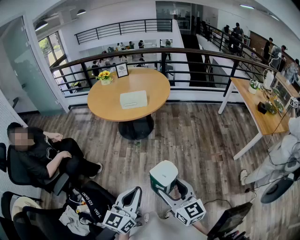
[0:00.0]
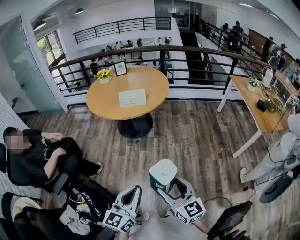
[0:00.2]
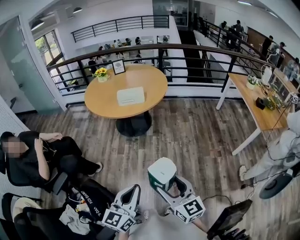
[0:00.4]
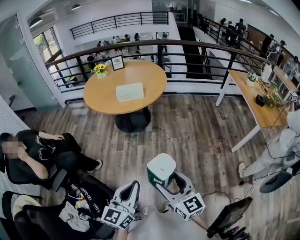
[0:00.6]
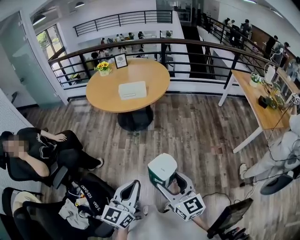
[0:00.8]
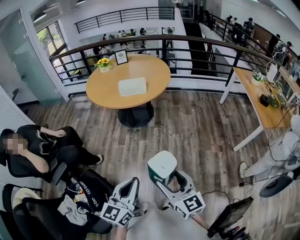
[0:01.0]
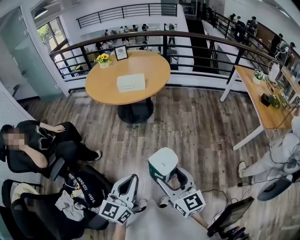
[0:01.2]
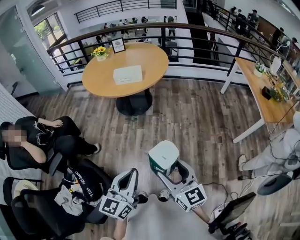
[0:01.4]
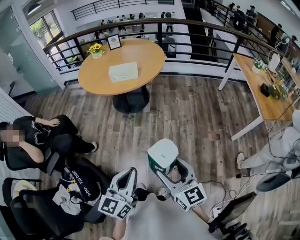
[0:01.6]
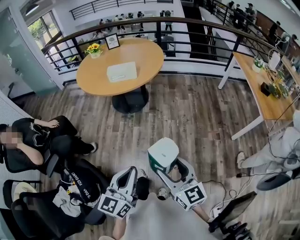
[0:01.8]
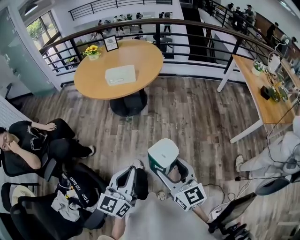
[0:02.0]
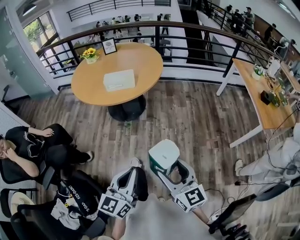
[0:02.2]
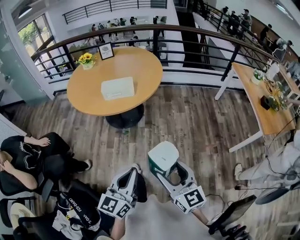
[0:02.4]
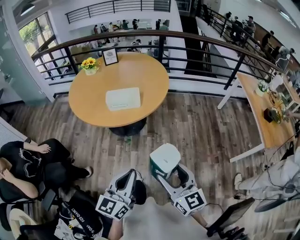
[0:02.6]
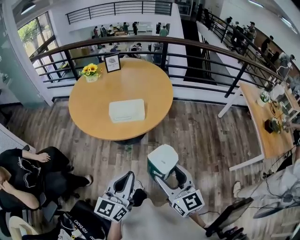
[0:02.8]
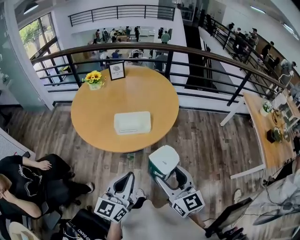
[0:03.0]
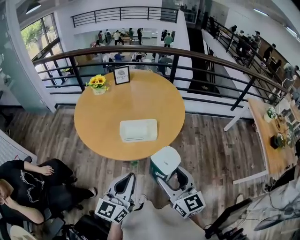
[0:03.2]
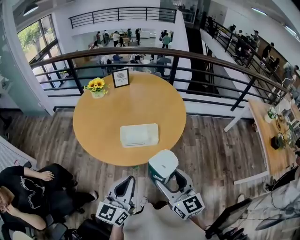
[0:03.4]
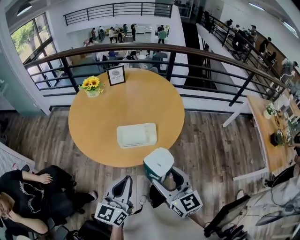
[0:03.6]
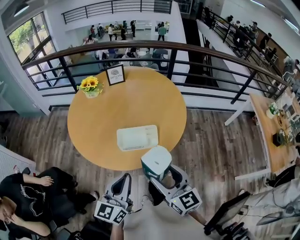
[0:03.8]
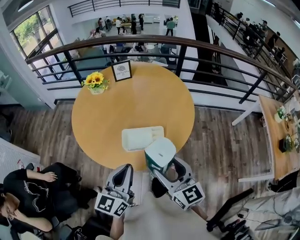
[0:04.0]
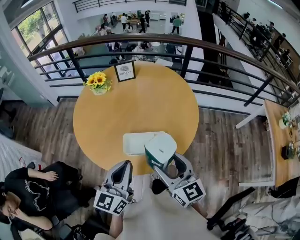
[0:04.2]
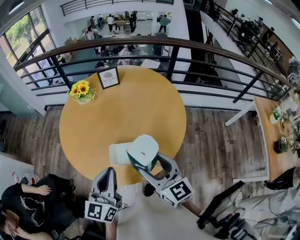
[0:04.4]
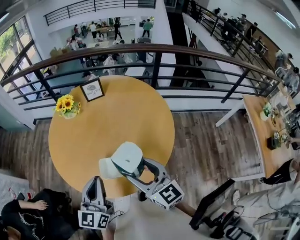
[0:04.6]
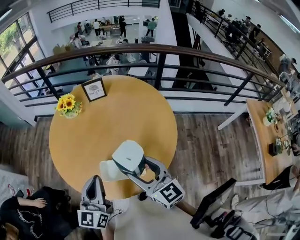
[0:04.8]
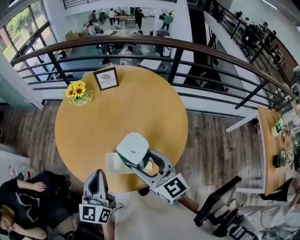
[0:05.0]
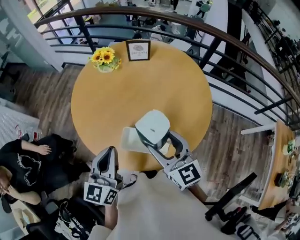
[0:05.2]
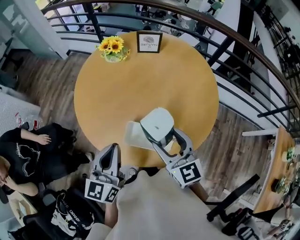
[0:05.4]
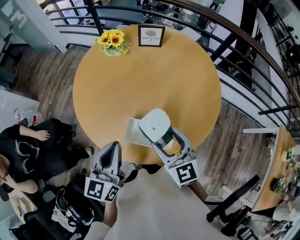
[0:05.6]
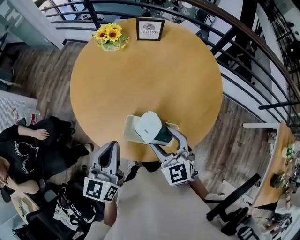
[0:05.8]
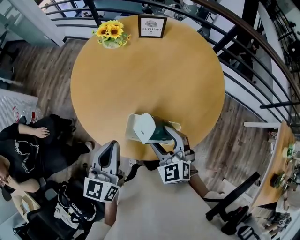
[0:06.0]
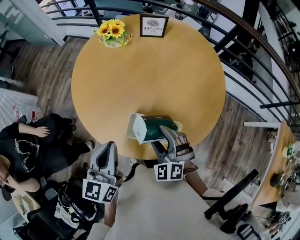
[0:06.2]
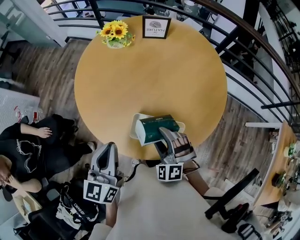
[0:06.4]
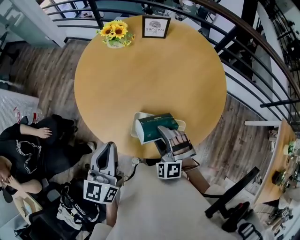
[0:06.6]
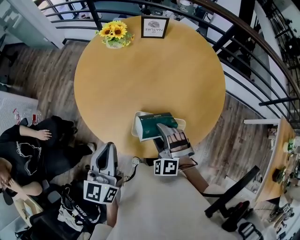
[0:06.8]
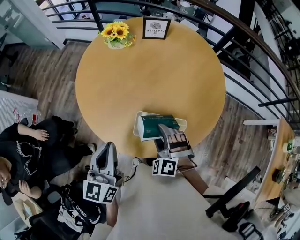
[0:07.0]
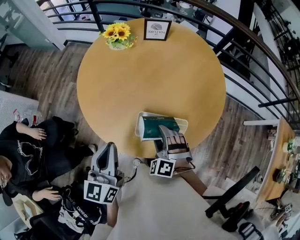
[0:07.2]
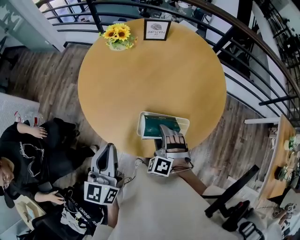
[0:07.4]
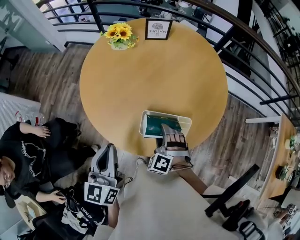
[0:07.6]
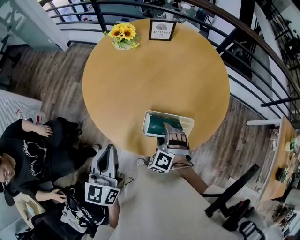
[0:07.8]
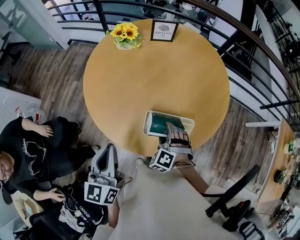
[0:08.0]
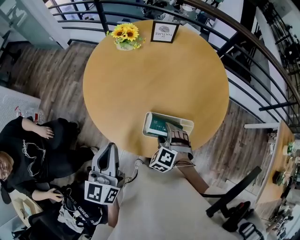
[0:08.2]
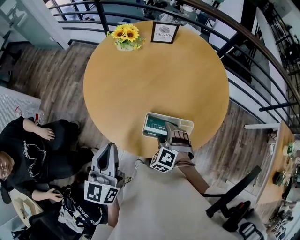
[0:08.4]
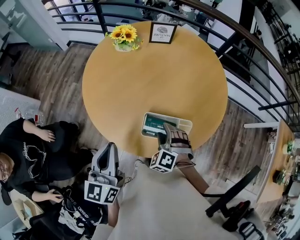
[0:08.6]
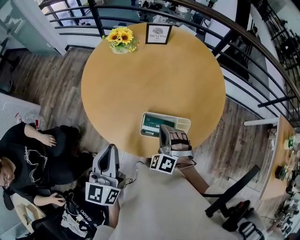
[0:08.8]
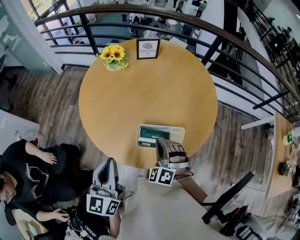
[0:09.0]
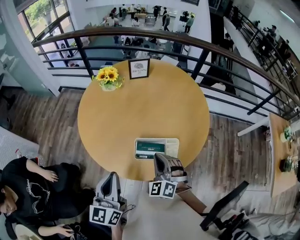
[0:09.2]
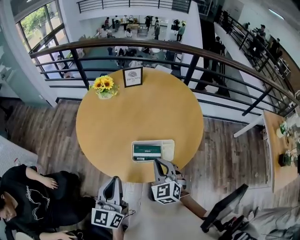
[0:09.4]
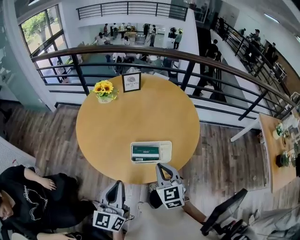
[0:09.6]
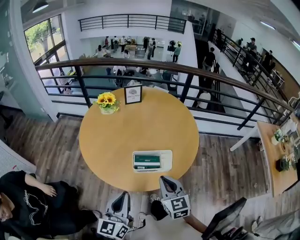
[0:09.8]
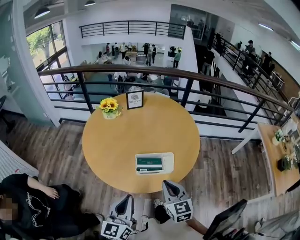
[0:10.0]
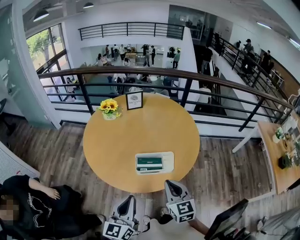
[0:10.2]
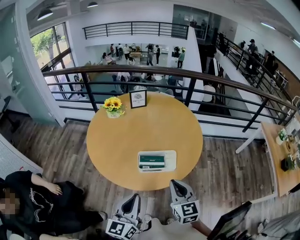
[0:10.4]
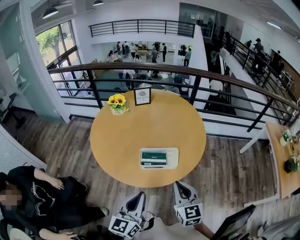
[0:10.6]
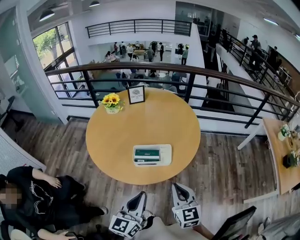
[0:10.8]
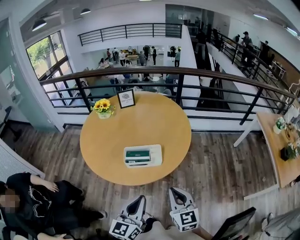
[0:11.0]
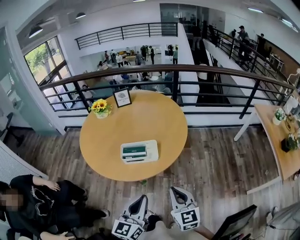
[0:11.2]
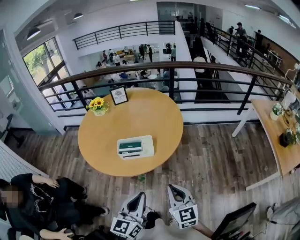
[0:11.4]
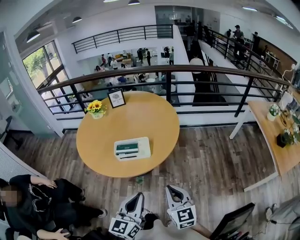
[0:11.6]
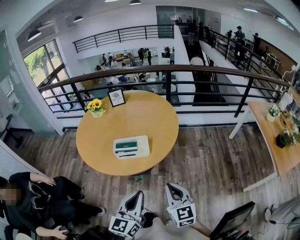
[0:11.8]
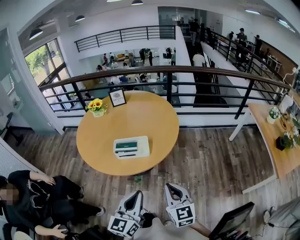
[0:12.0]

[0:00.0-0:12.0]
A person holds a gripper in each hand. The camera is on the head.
0.0 to 1.6 s: The grippers both shift to the right by some 5 cm.
1.6 to 3.0 s: Both grippers travel together forward, approximately 35 cm.
3.0 to 4.4 s: The grippers both shift forward by some 25 cm.
4.4 to 6.0 s: The right gripper moves downward and forward, approximately 15 cm, and swivels approximately 50 degrees, while the left gripper moves forward and downward, approximately 10 cm.
6.0 to 7.6 s: The right gripper goes roughly 10 cm downward, and changes its angle by roughly 40 degrees; the left gripper shifts approximately 5 cm to the left.
7.6 to 9.0 s: The right gripper travels upward by roughly 5 cm, and closes up.
9.0 to 10.4 s: The right gripper goes some 20 cm backward, upward and to the right, and rolls clockwise, seen from behind, by approximately 60 degrees; the left gripper travels backward and to the right by roughly 15 cm.
10.4 to 12.0 s: Both grippers move to the right and backward, about 20 cm.

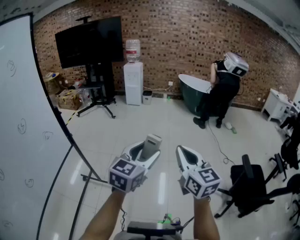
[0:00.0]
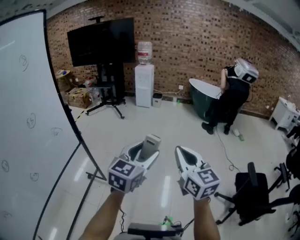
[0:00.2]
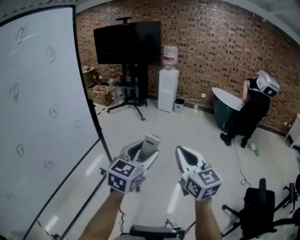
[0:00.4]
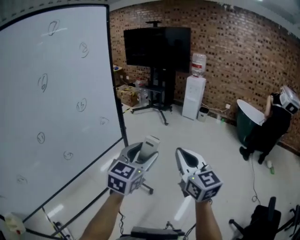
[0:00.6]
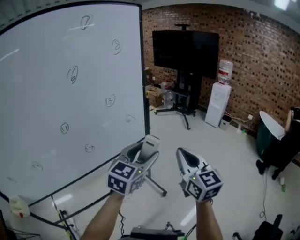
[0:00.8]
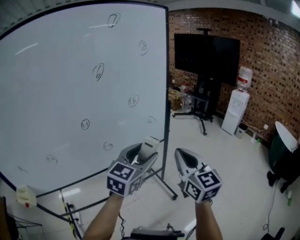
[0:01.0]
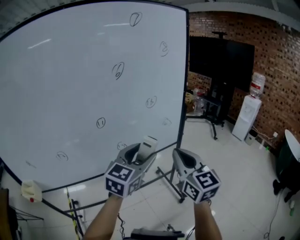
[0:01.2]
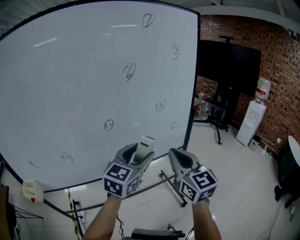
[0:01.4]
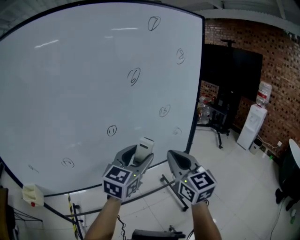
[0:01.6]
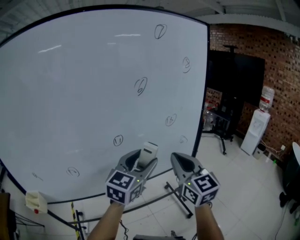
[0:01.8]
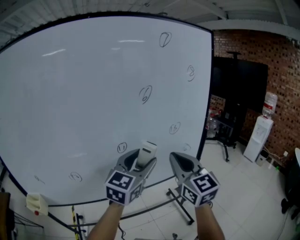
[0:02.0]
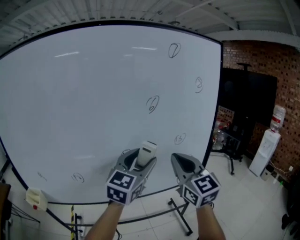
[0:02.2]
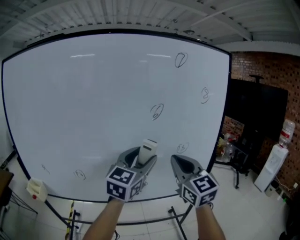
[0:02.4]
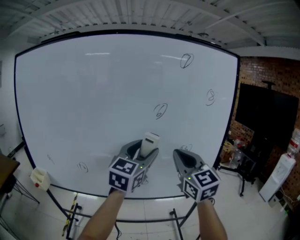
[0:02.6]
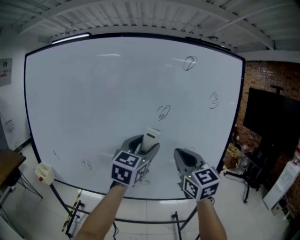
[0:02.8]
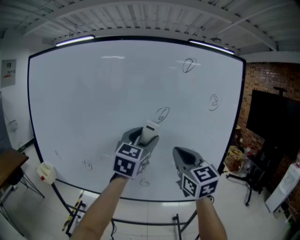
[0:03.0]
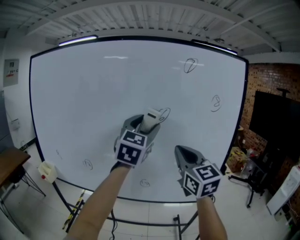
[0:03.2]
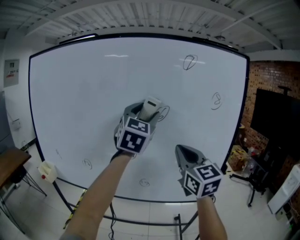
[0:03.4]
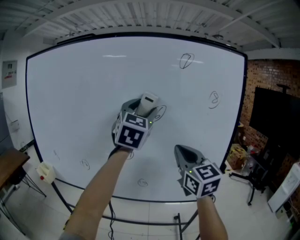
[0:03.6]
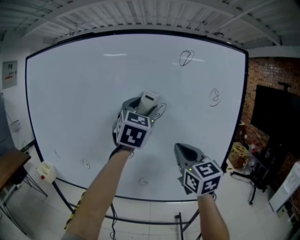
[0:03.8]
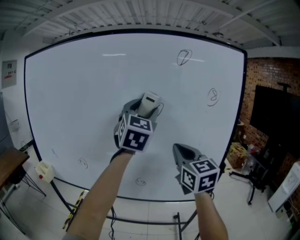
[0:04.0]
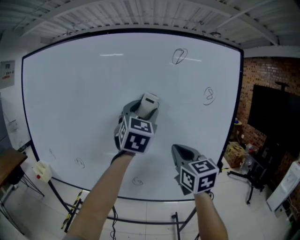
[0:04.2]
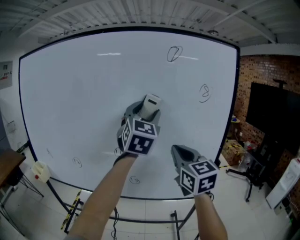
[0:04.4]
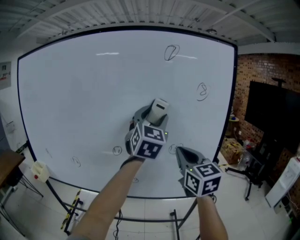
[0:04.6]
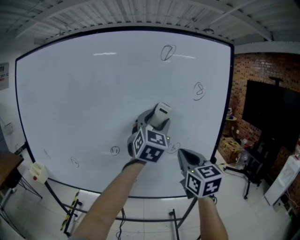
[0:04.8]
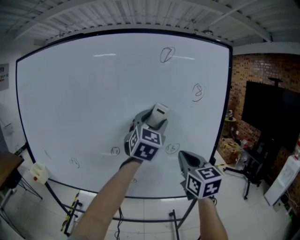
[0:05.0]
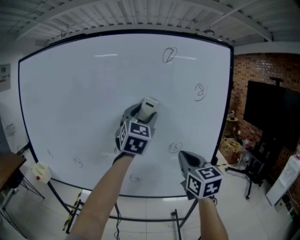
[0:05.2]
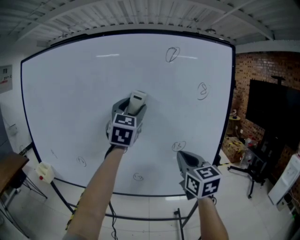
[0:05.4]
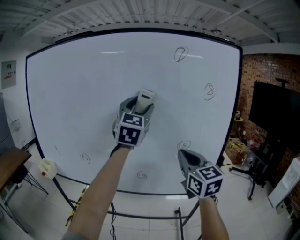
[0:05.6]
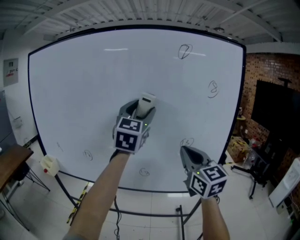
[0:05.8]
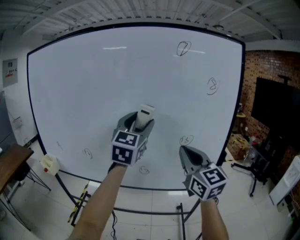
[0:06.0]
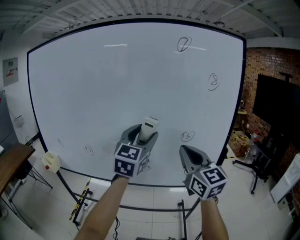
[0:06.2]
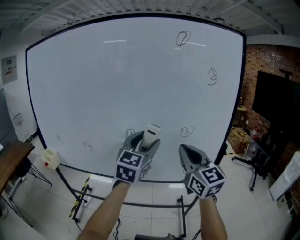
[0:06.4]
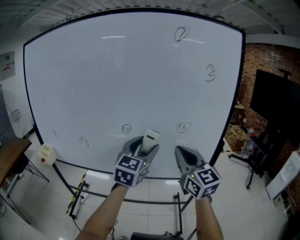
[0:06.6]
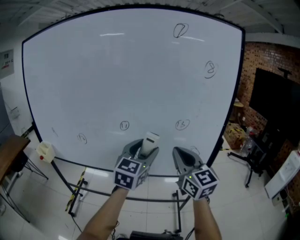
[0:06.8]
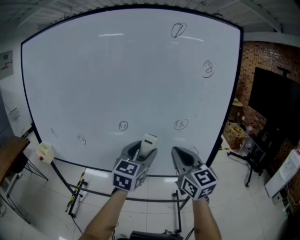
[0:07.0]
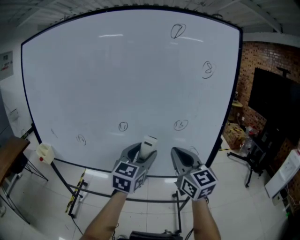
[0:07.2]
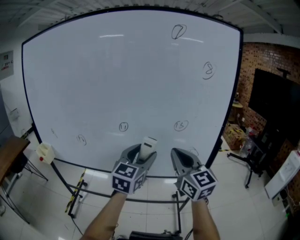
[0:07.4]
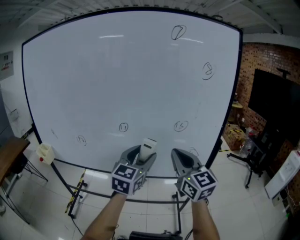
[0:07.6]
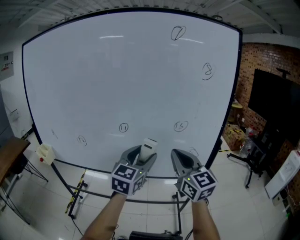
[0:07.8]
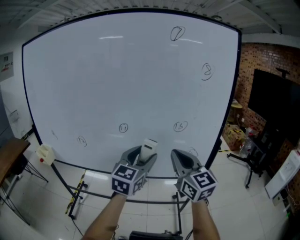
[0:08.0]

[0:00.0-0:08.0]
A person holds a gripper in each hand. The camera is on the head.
0.0 to 1.6 s: Both grippers are carried about 50 cm. The left gripper swivels roughly 60 degrees, while the right gripper rotates approximately 60 degrees.
1.6 to 3.2 s: The left gripper is displaced upward by about 20 cm, and changes its angle by roughly 40 degrees, while the right gripper shifts approximately 10 cm upward, and swivels roughly 30 degrees.
3.2 to 4.8 s: Both grippers travel together to the right, about 10 cm.
4.8 to 6.4 s: The left gripper moves downward, to the left and backward, roughly 15 cm, while the right gripper moves to the left, about 5 cm.
6.4 to 8.0 s: The left gripper shifts about 5 cm downward.

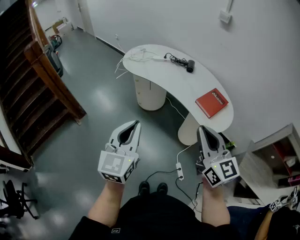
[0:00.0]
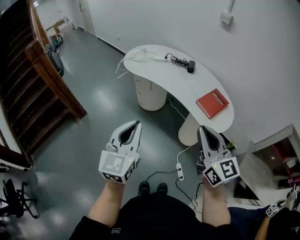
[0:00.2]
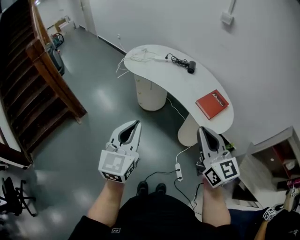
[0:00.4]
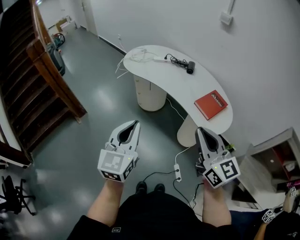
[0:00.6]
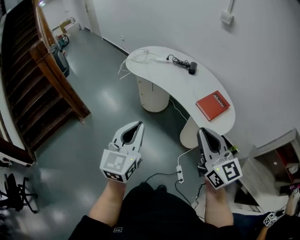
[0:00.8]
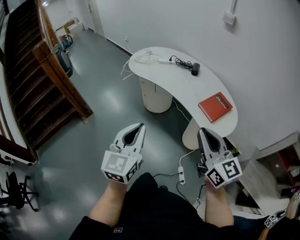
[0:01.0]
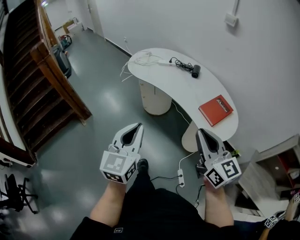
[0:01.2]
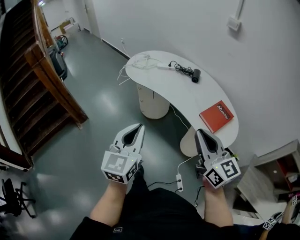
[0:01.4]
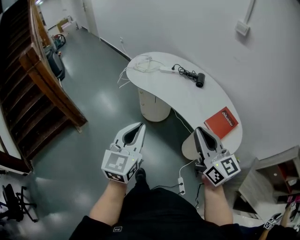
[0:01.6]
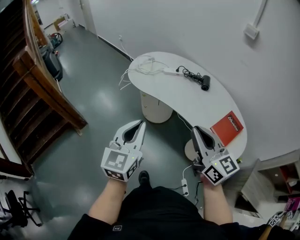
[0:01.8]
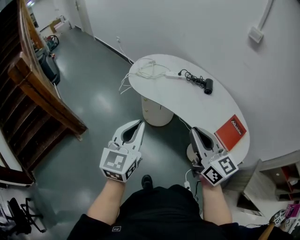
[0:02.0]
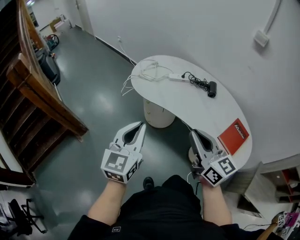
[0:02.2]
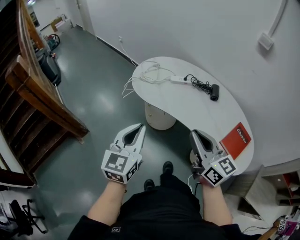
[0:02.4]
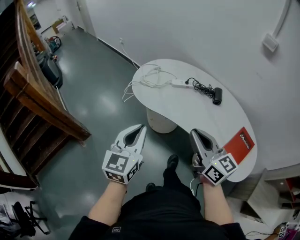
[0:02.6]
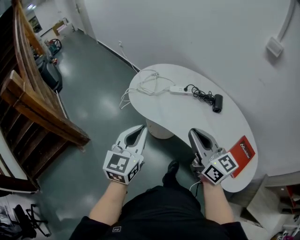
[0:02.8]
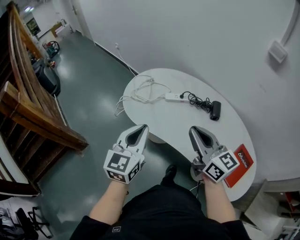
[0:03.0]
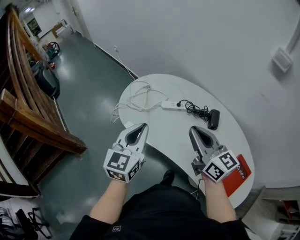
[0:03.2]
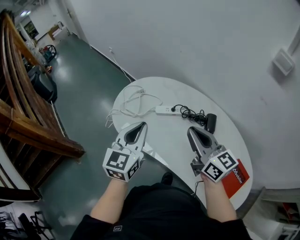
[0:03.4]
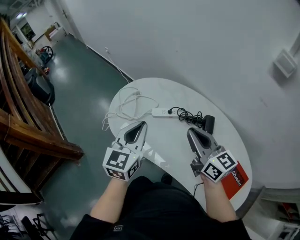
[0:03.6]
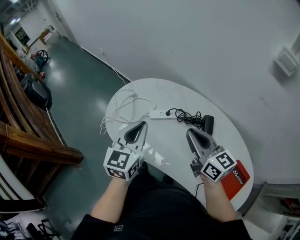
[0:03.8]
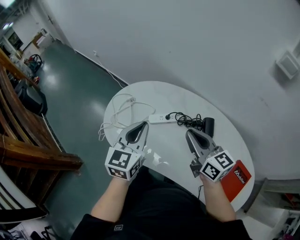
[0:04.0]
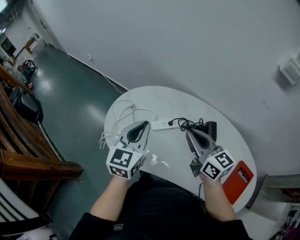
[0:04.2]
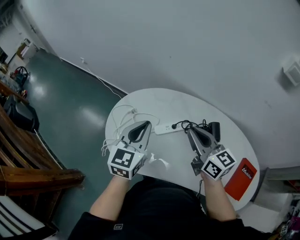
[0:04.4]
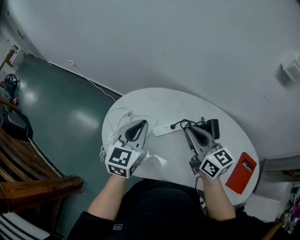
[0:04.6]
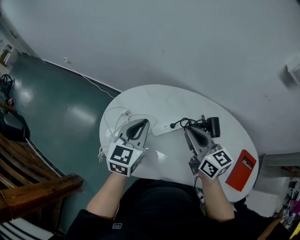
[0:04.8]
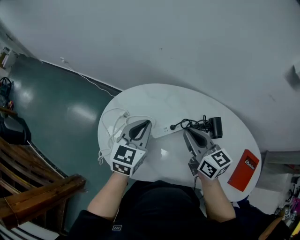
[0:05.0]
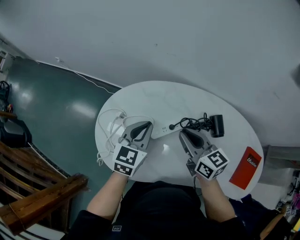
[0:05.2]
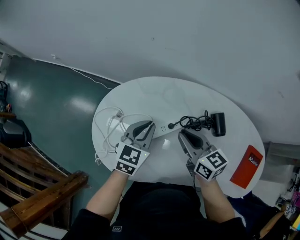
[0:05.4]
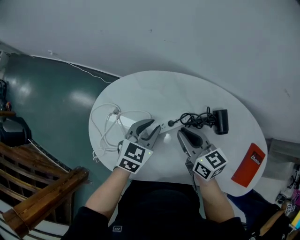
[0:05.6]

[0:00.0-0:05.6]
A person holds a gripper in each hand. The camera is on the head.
0.0 to 1.4 s: Both grippers move forward, approximately 10 cm.
1.4 to 2.8 s: The two grippers go some 35 cm forward.
2.8 to 4.2 s: Both grippers travel together forward, roughly 30 cm.
4.2 to 5.6 s: The two grippers go roughly 20 cm downward and forward. The left gripper rotates approximately 40 degrees, and opens. Meanwhile the right gripper swivels roughly 20 degrees.
